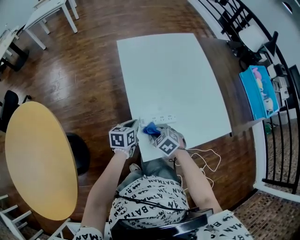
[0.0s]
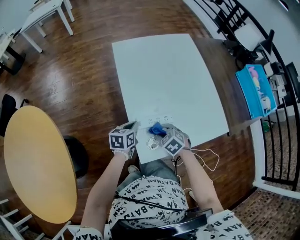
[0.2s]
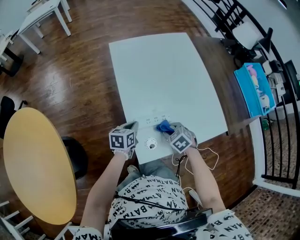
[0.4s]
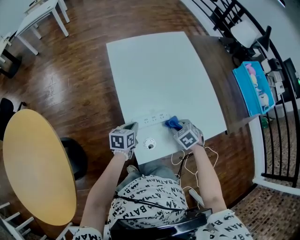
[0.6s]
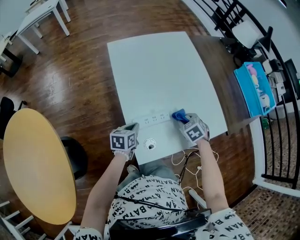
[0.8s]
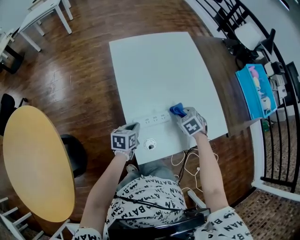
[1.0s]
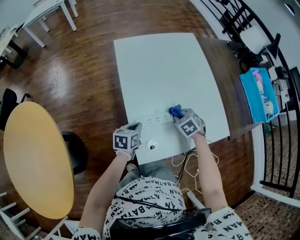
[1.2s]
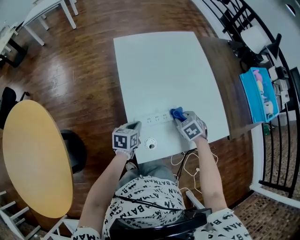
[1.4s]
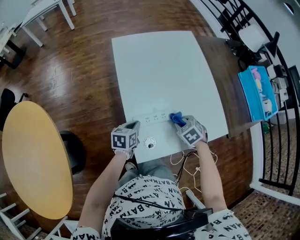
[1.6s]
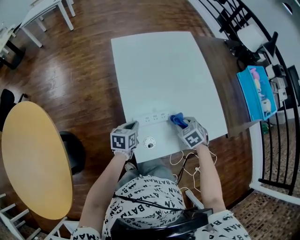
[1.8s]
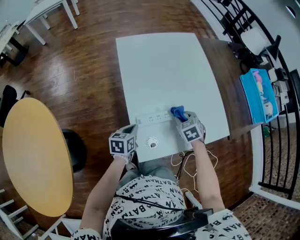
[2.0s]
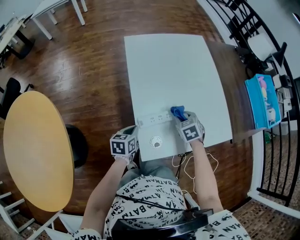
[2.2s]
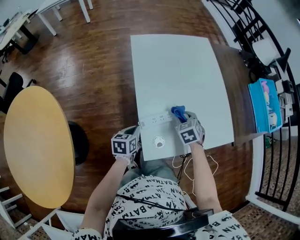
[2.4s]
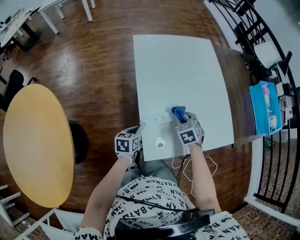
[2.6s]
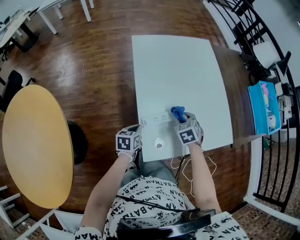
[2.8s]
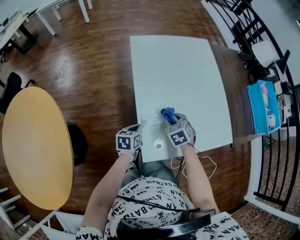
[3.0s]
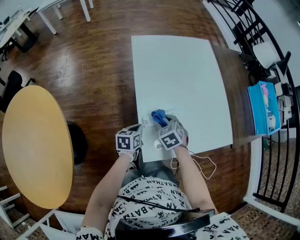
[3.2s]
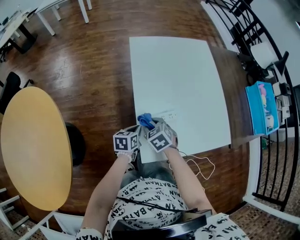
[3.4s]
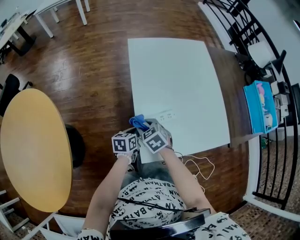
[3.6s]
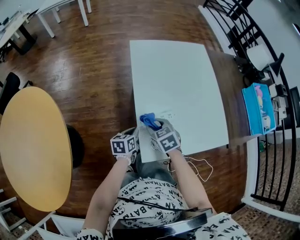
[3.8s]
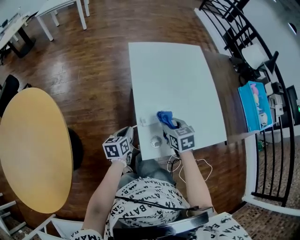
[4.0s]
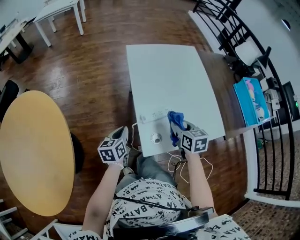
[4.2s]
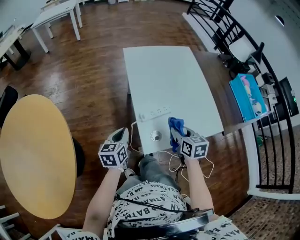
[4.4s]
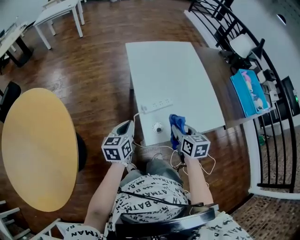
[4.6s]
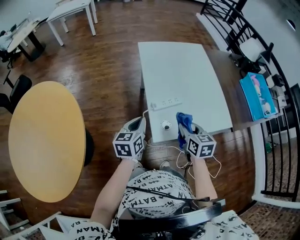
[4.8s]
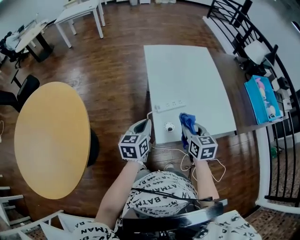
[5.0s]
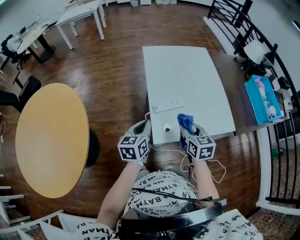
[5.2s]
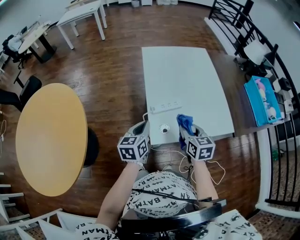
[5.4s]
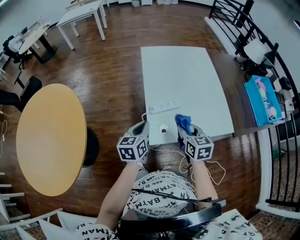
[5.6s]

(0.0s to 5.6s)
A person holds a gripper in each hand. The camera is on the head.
0.0s - 1.4s: The right gripper heads to the right and forward, covering about 20 cm.
1.4s - 2.8s: The left gripper moves roughly 5 cm. Meanwhile the right gripper shifts roughly 5 cm to the left.
2.8s - 4.2s: The left gripper shifts some 10 cm upward and to the left, while the right gripper moves upward and backward, about 15 cm, goes to the left and returns, some 20 cm each way, and rotates about 30 degrees.
4.2s - 5.6s: The right gripper heads backward, covering some 10 cm. The left gripper travels to the right, upward and backward by about 15 cm.

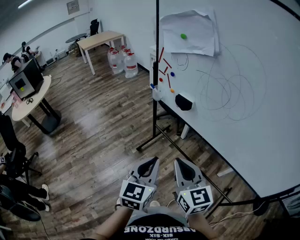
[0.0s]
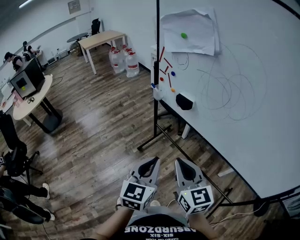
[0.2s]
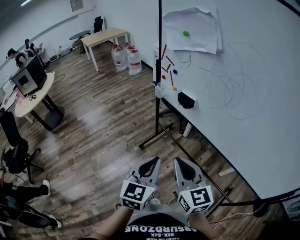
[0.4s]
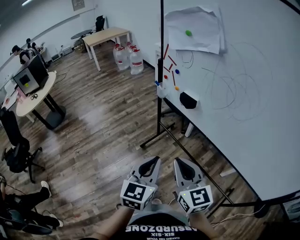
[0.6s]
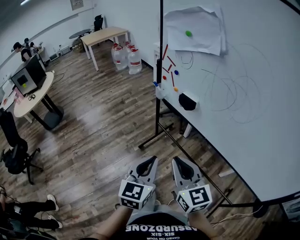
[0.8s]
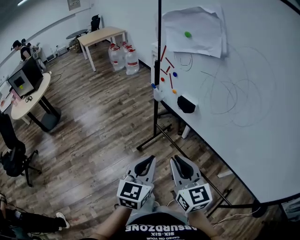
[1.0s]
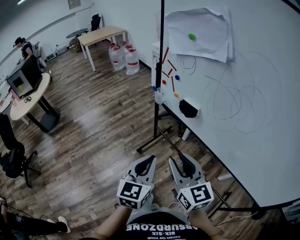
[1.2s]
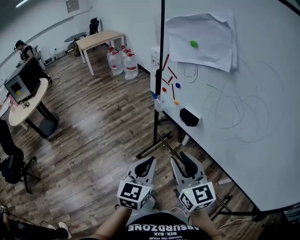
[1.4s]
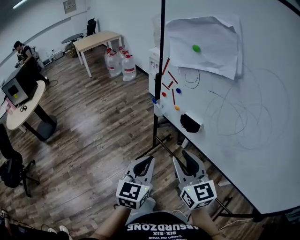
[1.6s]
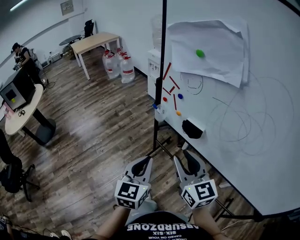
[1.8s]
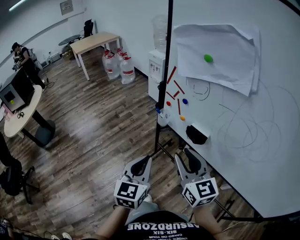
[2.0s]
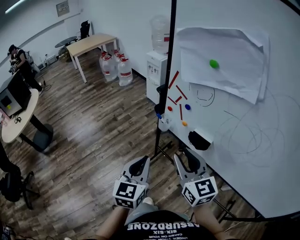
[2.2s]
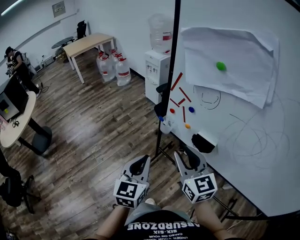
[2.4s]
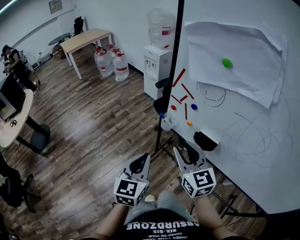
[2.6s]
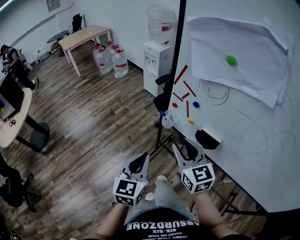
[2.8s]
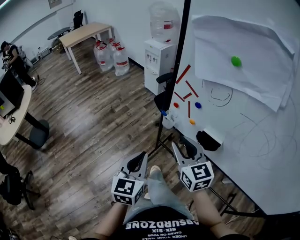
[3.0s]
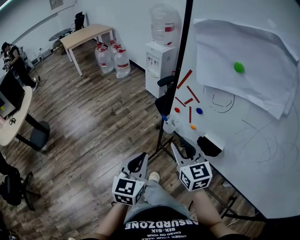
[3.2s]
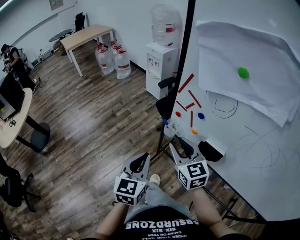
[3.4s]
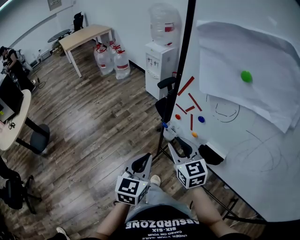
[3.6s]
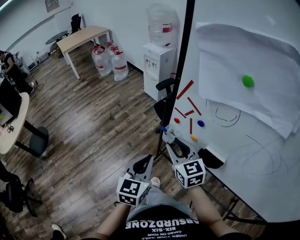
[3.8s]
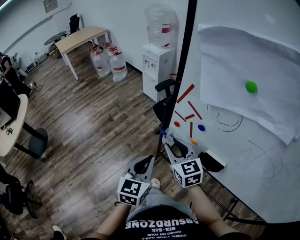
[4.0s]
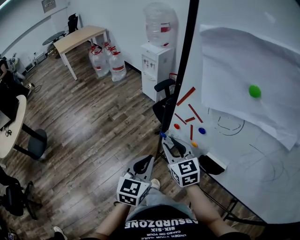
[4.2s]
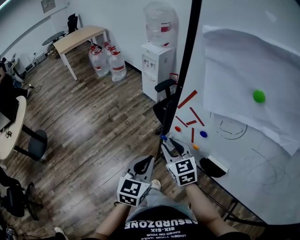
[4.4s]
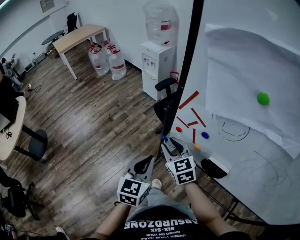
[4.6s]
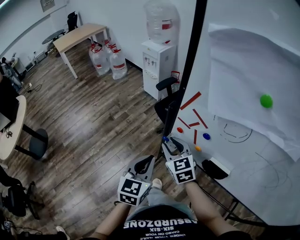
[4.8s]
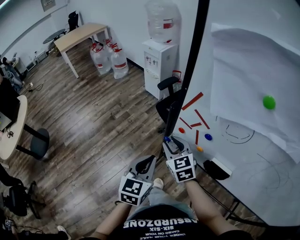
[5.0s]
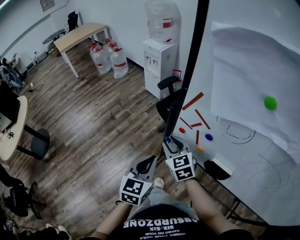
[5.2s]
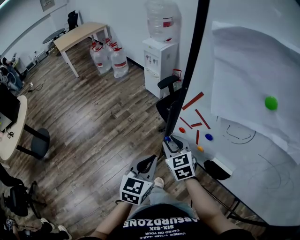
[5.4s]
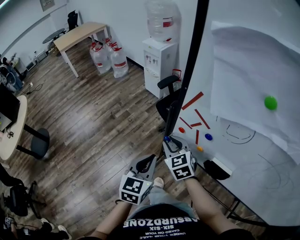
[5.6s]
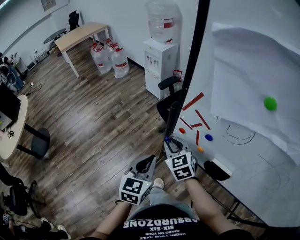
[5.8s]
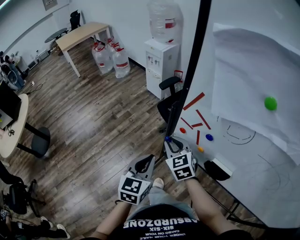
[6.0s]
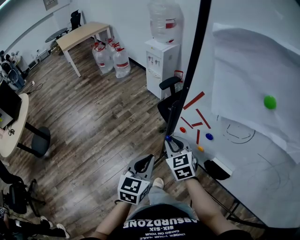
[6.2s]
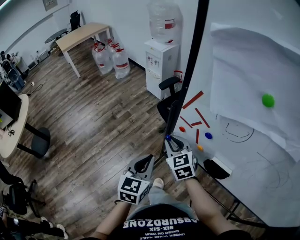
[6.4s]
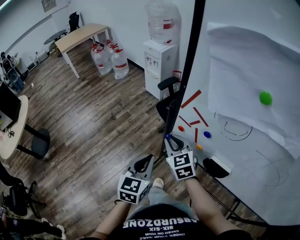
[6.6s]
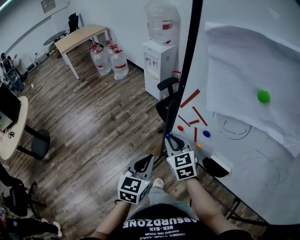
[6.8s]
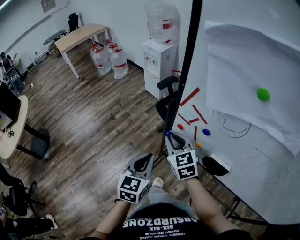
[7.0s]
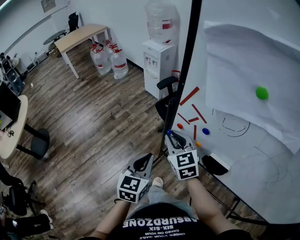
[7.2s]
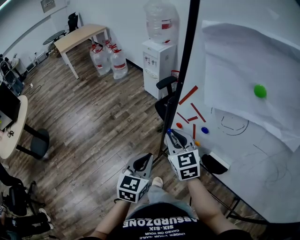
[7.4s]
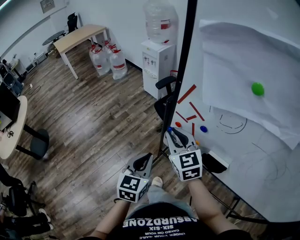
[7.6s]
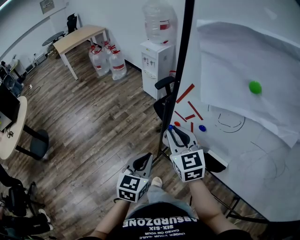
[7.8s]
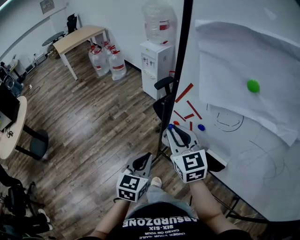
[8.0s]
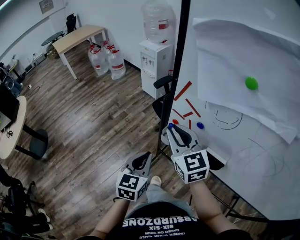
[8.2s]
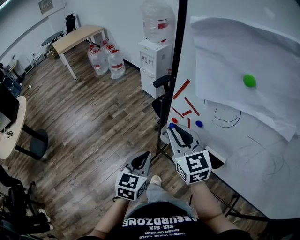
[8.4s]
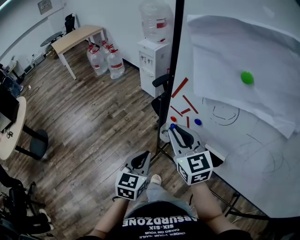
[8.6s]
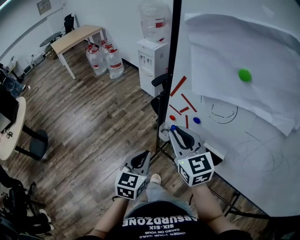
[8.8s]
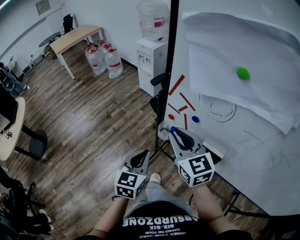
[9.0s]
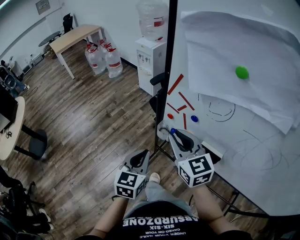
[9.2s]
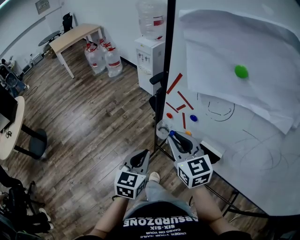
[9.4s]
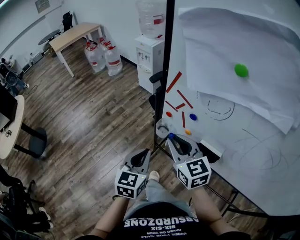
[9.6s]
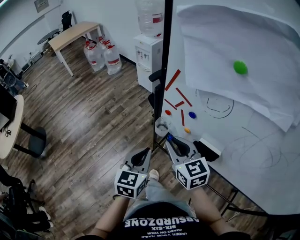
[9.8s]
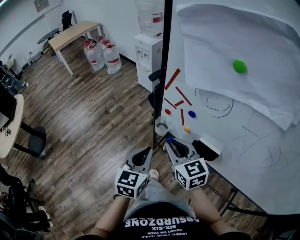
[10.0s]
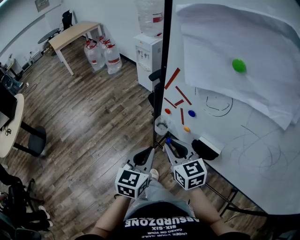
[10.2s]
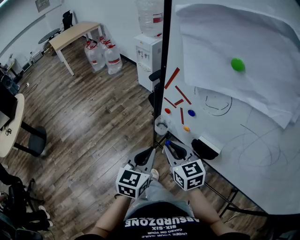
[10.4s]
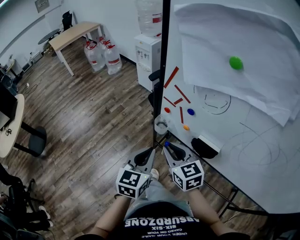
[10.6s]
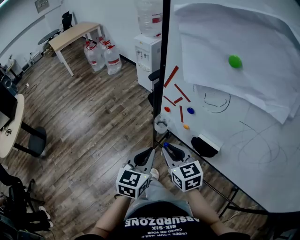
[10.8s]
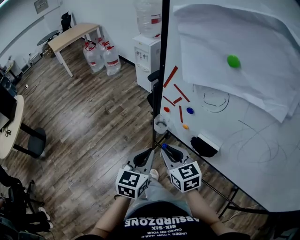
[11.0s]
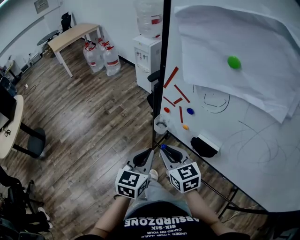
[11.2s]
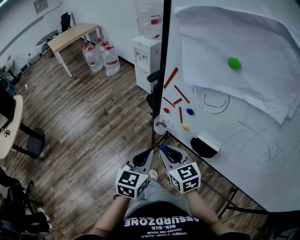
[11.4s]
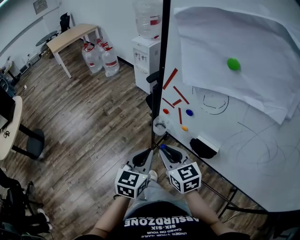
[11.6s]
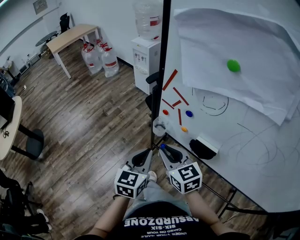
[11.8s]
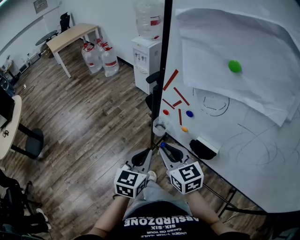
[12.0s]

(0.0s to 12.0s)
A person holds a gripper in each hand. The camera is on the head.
0.0s - 1.6s: The grippers both shift forward by approximately 15 cm. The right gripper opens its fingers.
1.6s - 3.0s: The left gripper goes roughly 20 cm forward and to the left, while the right gripper moves forward, about 20 cm.
3.0s - 4.4s: The right gripper moves forward and downward, some 15 cm. The left gripper is displaced forward by some 15 cm.
4.4s - 6.0s: The grippers move only a little.
6.0s - 7.6s: The right gripper travels upward by approximately 10 cm.
7.6s - 9.0s: The right gripper moves backward, some 5 cm.
9.0s - 10.4s: The right gripper heads downward, covering approximately 10 cm.
10.4s - 12.0s: The grippers stay close to where they were, moving slightly.

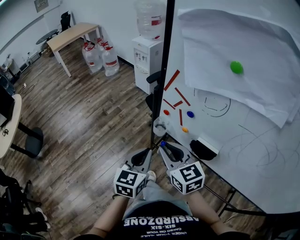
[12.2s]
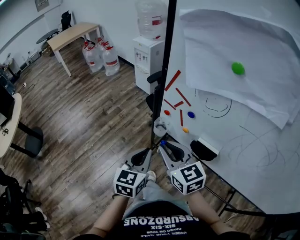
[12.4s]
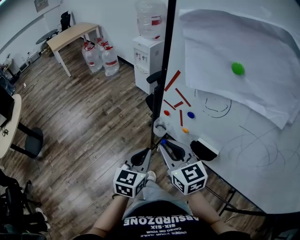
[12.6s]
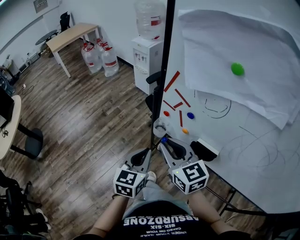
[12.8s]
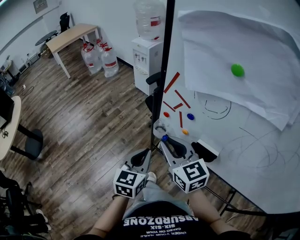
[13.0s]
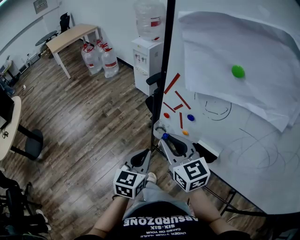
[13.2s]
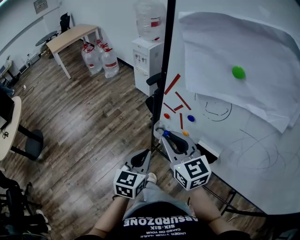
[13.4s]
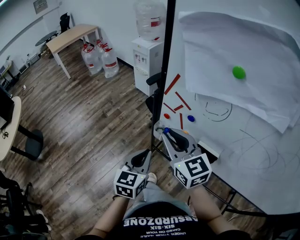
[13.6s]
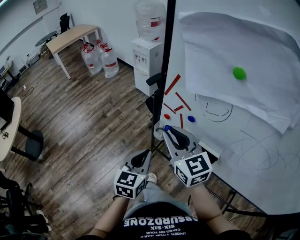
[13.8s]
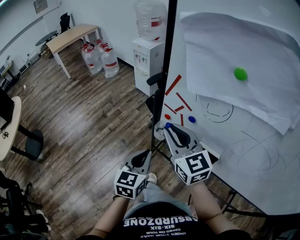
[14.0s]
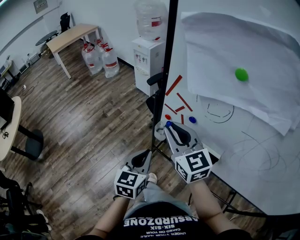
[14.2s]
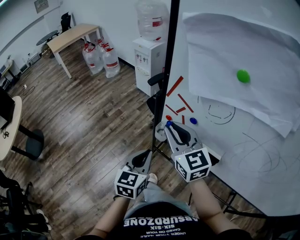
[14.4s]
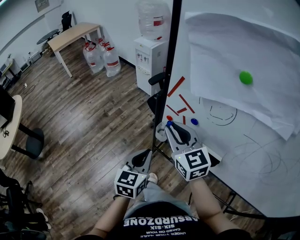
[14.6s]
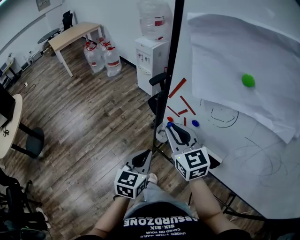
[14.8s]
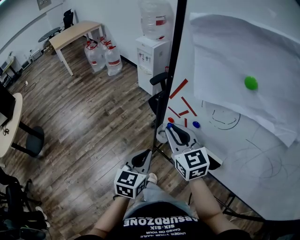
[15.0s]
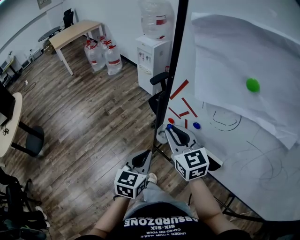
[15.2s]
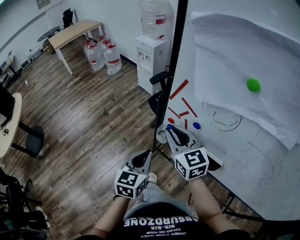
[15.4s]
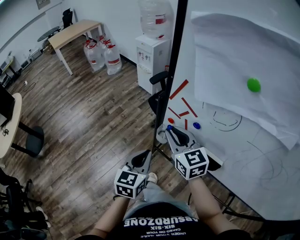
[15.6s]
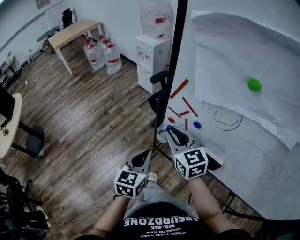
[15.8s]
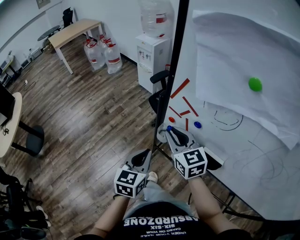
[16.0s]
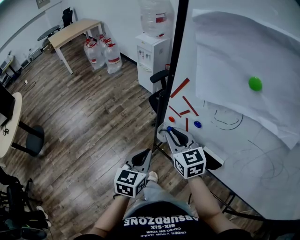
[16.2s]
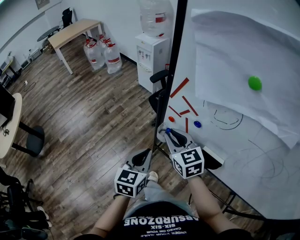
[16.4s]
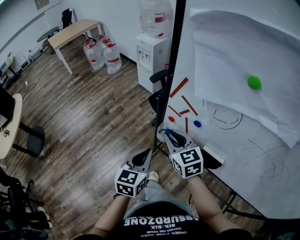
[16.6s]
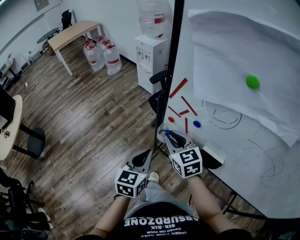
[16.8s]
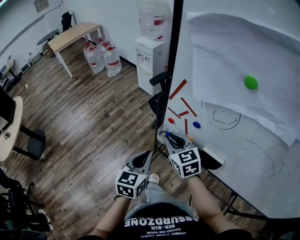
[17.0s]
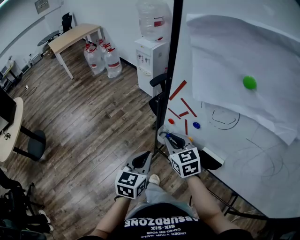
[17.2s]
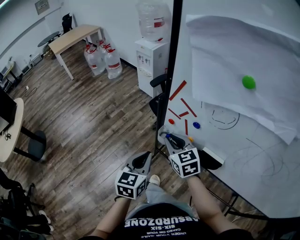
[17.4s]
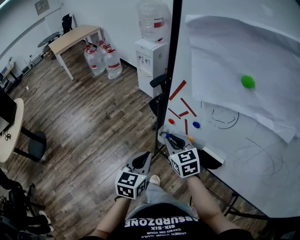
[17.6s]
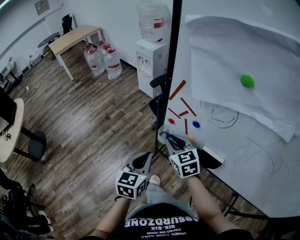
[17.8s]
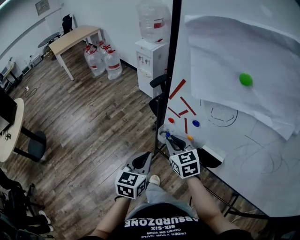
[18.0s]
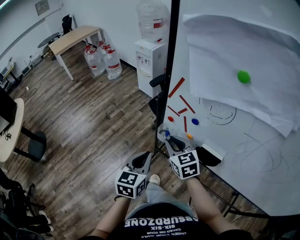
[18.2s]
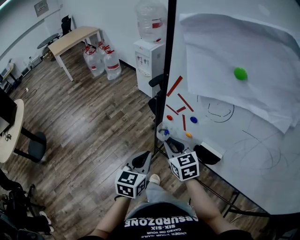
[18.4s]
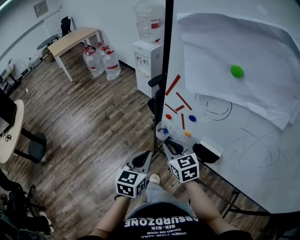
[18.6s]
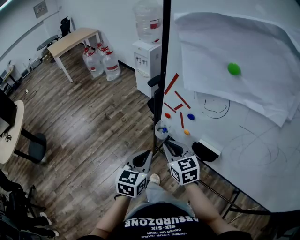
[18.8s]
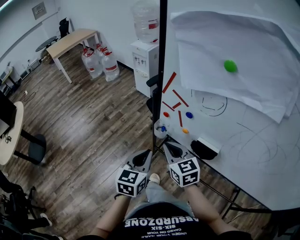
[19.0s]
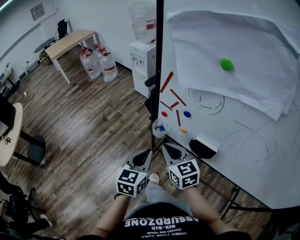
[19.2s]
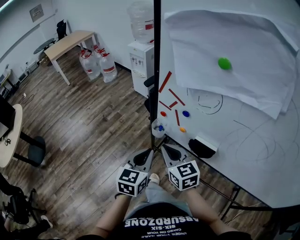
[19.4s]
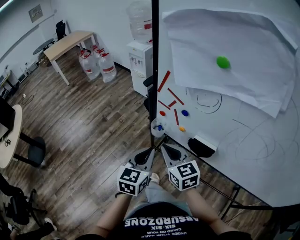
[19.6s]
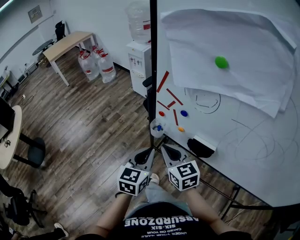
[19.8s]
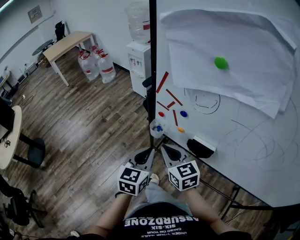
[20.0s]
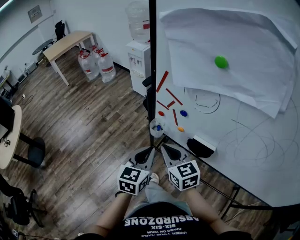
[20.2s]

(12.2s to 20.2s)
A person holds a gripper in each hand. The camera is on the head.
12.2s - 13.8s: The right gripper is displaced upward and forward by some 10 cm.
13.8s - 15.4s: The right gripper heads downward, covering approximately 5 cm.
15.4s - 17.0s: The right gripper shifts roughly 5 cm downward.
17.0s - 18.6s: The right gripper shifts by roughly 5 cm.
18.6s - 20.2s: The right gripper shifts by some 5 cm.
